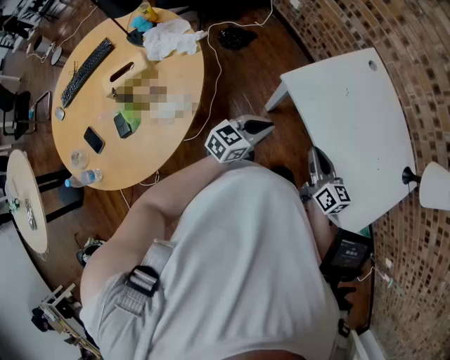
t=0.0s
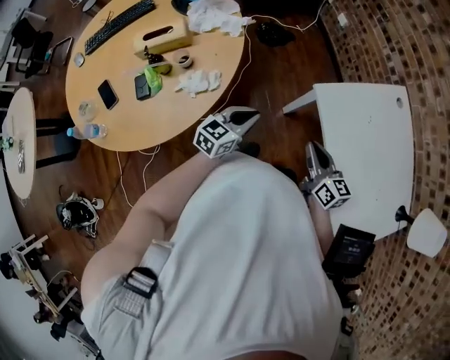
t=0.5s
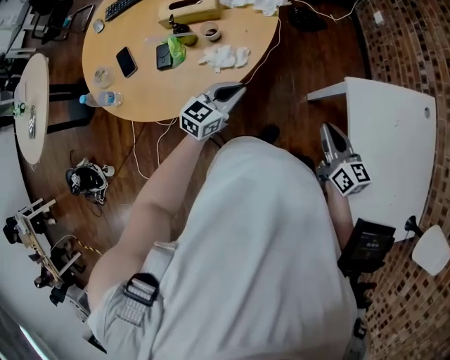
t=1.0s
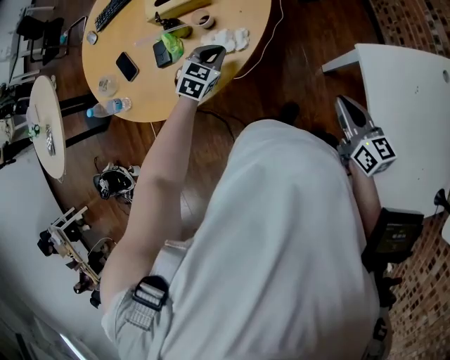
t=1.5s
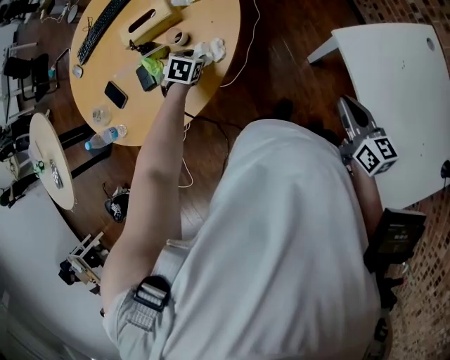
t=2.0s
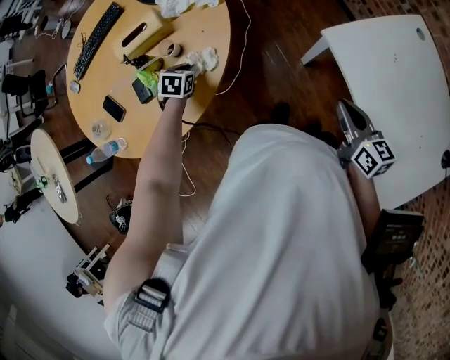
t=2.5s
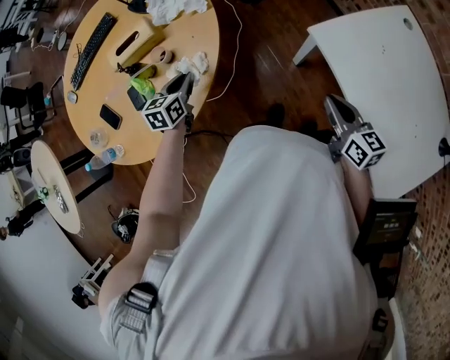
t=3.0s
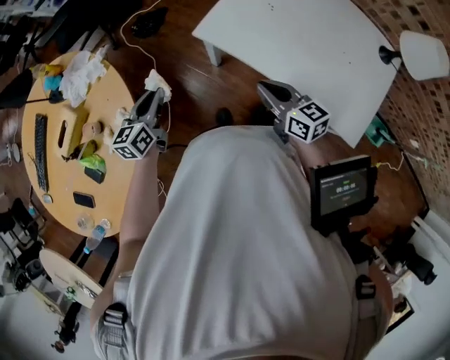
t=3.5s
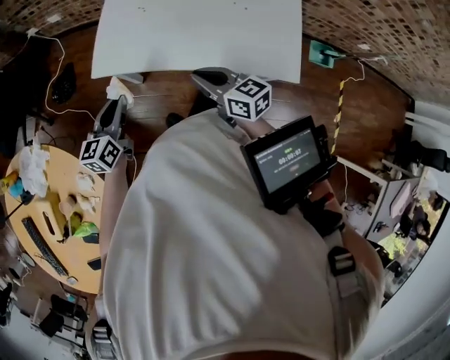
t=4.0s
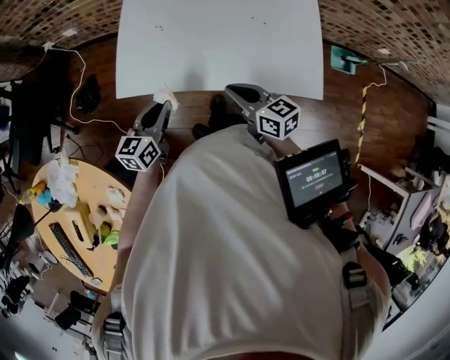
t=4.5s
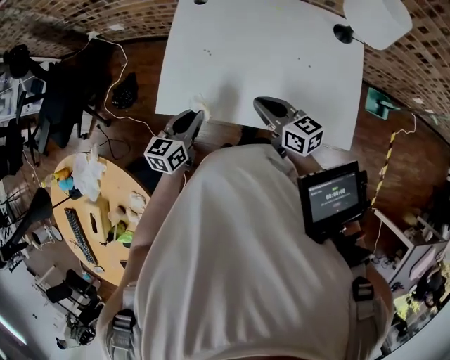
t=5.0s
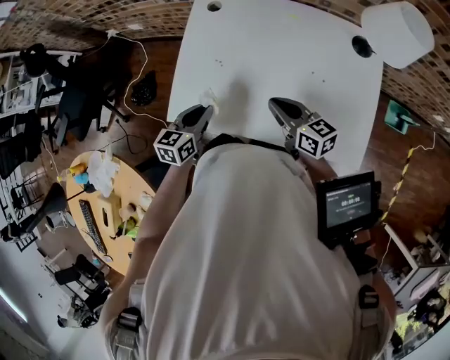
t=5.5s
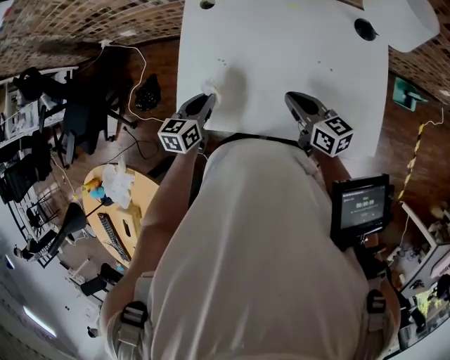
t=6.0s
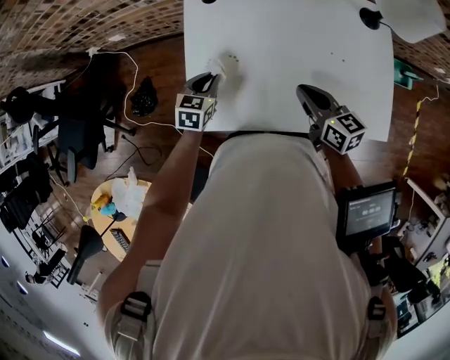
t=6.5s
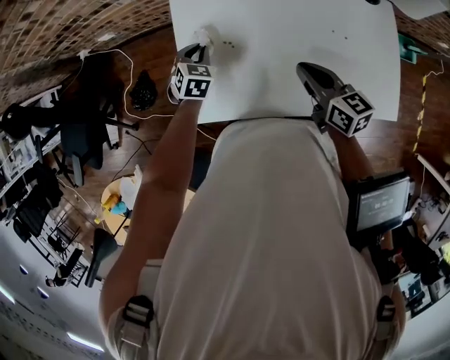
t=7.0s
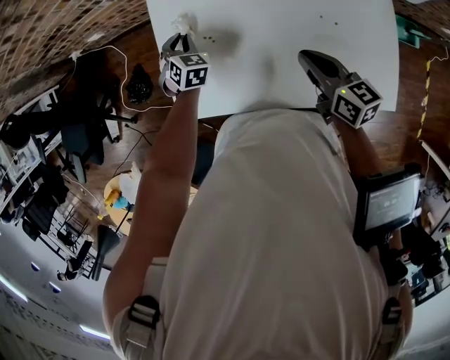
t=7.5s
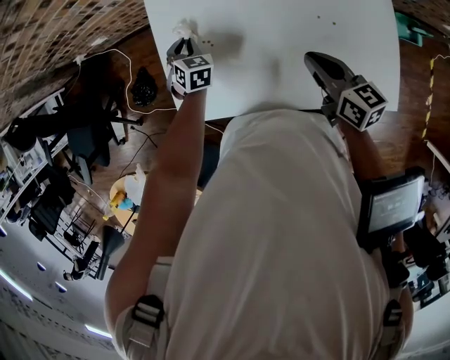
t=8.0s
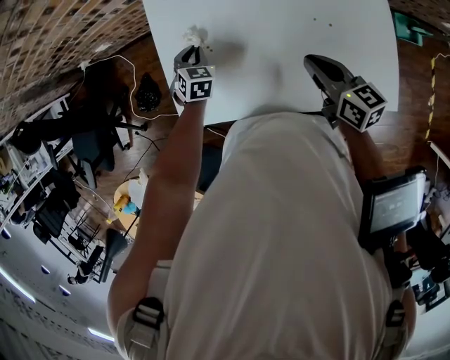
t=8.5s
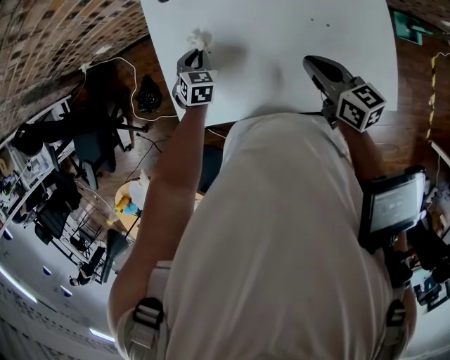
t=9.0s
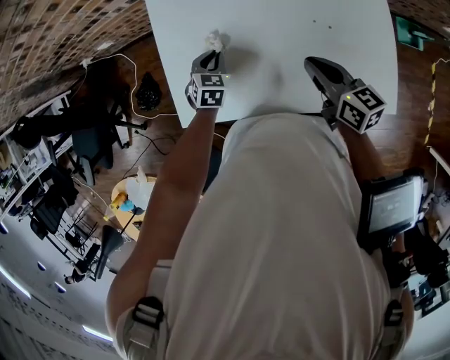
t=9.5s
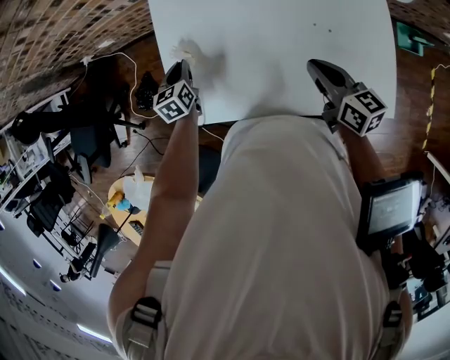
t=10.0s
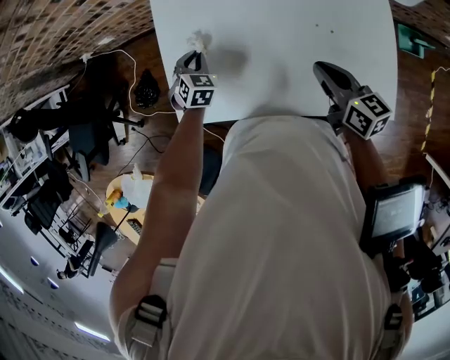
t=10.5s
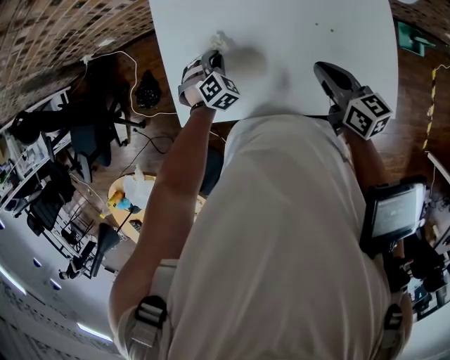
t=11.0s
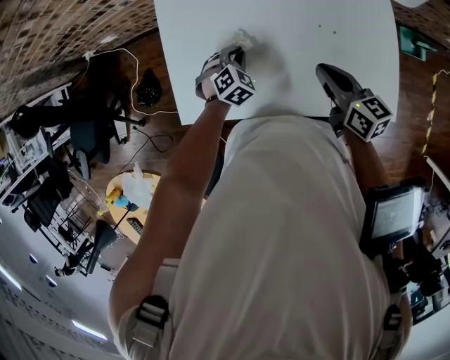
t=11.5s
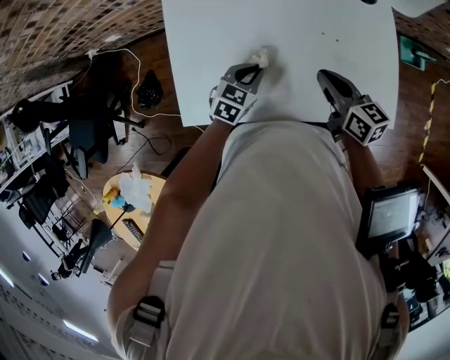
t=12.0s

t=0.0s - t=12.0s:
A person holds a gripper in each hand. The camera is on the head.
t=0.0s - t=2.0s: The left gripper ends up roughly 40 cm from where it was, tips its fingers downward by some 50 degrees, and opens up.
t=2.0s - t=4.0s: The right gripper changes place by approximately 20 cm, and changes its angle by roughly 40 degrees. The left gripper ends up some 40 cm from where it was, tilts its fingers about 50 degrees upward, and closes its fingers.
t=4.0s - t=6.0s: The right gripper travels forward and to the right by about 20 cm; the left gripper shifts roughly 20 cm forward.
t=6.0s - t=8.0s: The right gripper shifts by some 5 cm. Meanwhile the left gripper shifts some 20 cm forward and downward, and turns by about 50 degrees.
t=8.0s - t=10.0s: The left gripper travels to the left by approximately 5 cm, and rotates about 40 degrees.
t=10.0s - t=12.0s: The left gripper ends up about 20 cm from where it was, and rotates about 40 degrees.

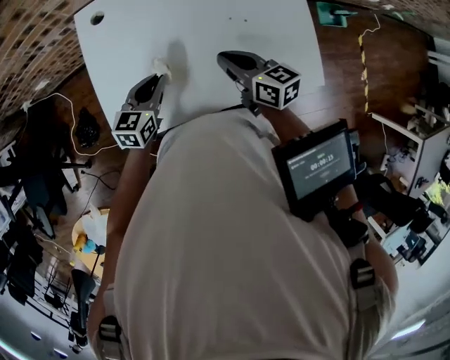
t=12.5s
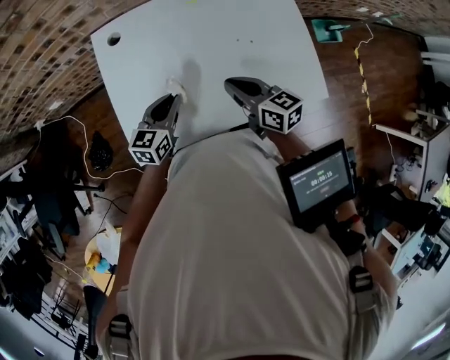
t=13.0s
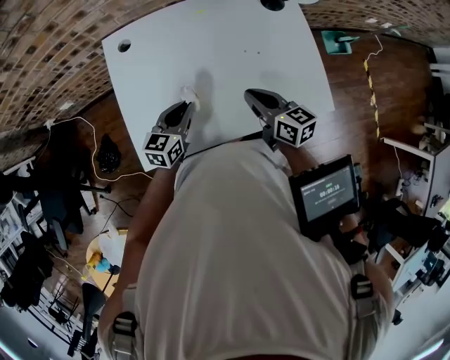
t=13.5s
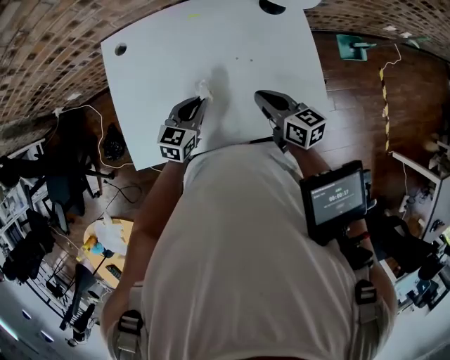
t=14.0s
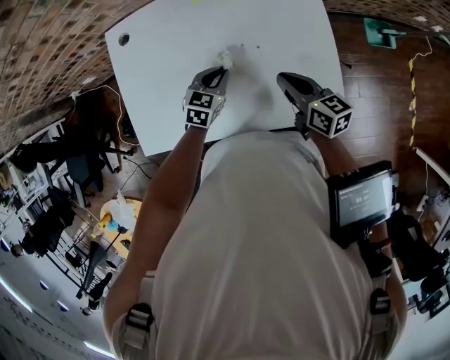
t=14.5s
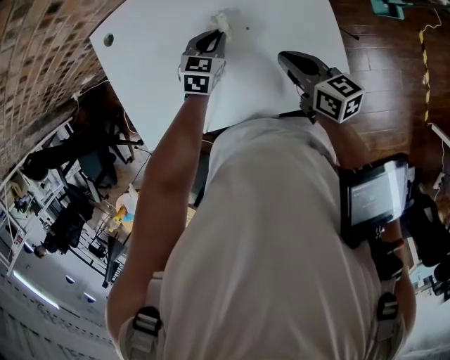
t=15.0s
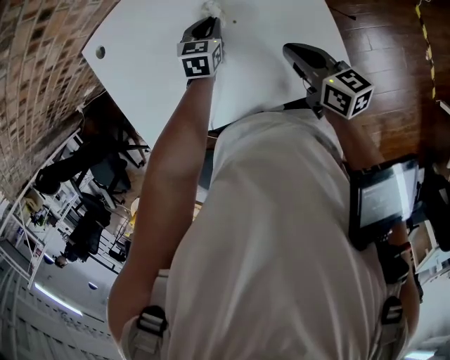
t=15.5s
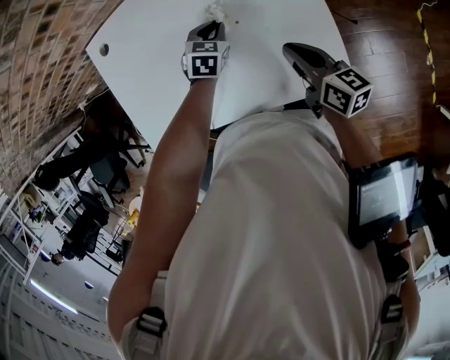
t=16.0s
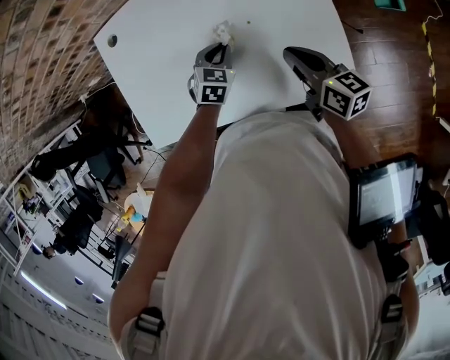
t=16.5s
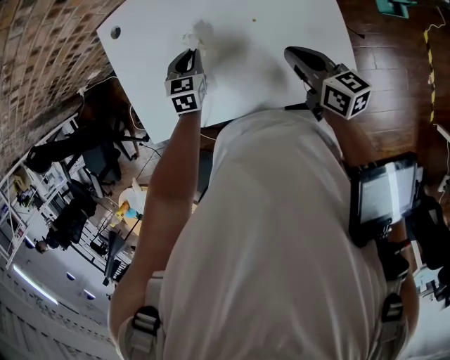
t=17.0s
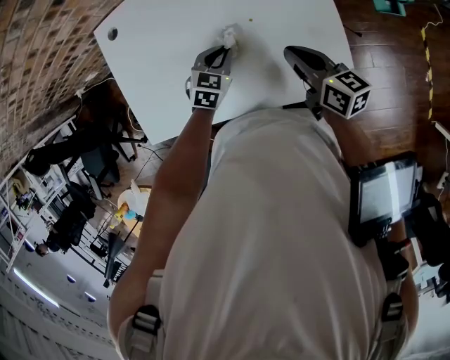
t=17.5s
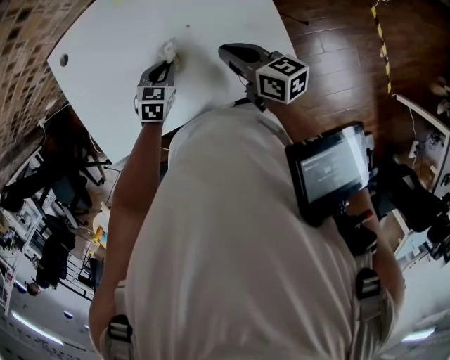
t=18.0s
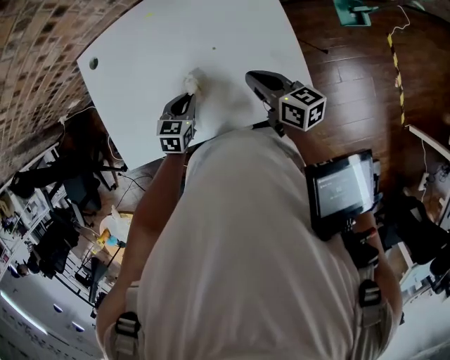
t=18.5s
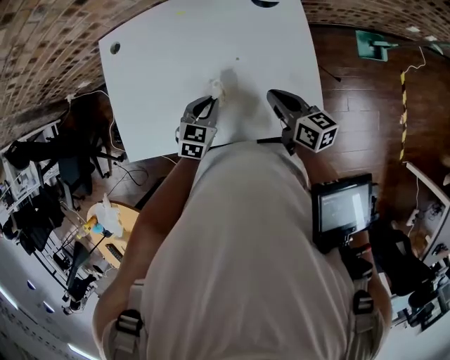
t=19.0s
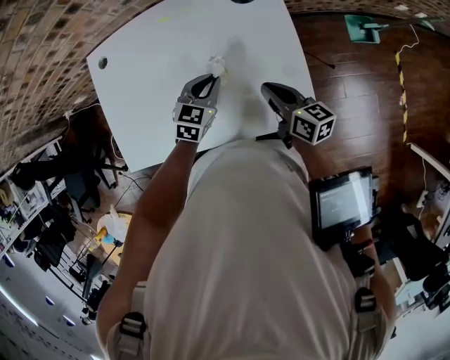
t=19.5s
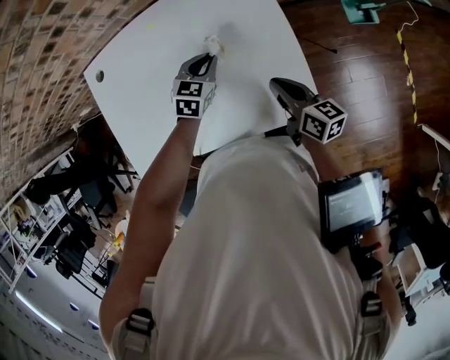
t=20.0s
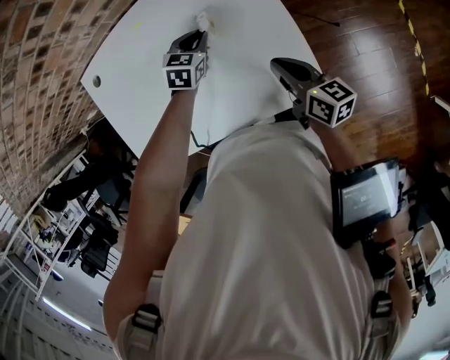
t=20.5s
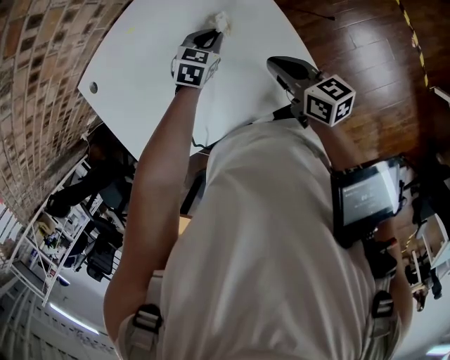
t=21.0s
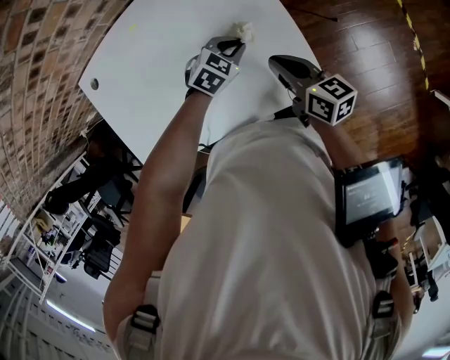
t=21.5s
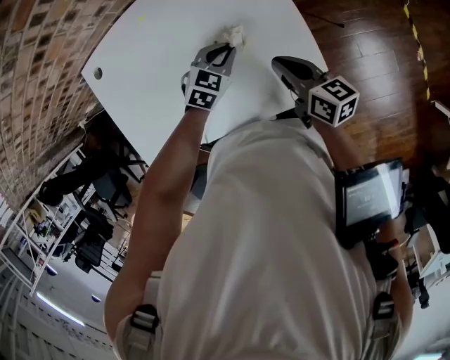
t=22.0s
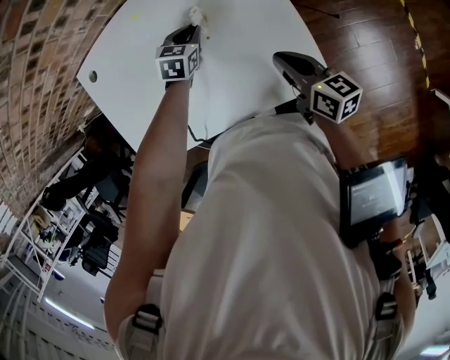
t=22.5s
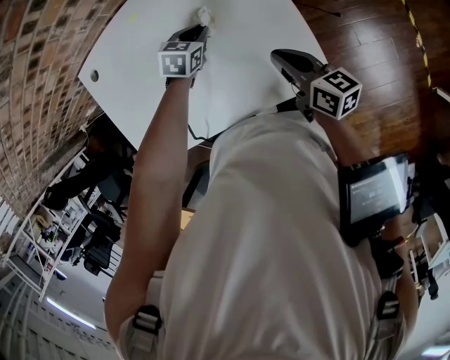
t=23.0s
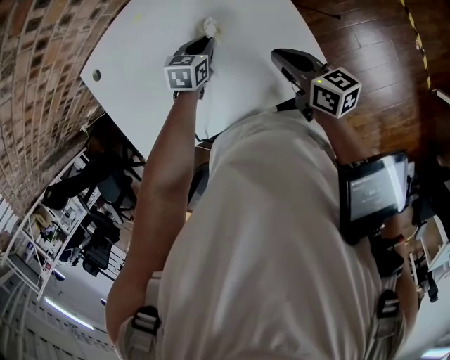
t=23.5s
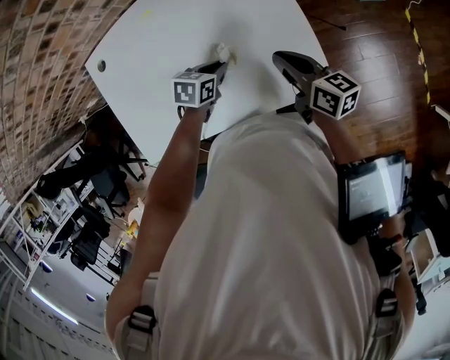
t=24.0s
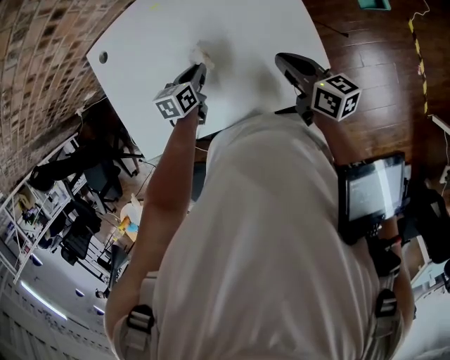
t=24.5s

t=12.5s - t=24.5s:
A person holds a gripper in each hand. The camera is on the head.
t=12.5s - t=14.5s: Both grippers travel together to the right, about 20 cm.
t=14.5s - t=16.5s: The left gripper reaches about 10 cm forward, then returns.
t=16.5s - t=18.5s: The left gripper heads backward, covering roughly 5 cm.
t=18.5s - t=20.5s: The left gripper moves forward and to the right, some 20 cm; the right gripper travels to the right by some 5 cm.
t=20.5s - t=22.5s: The left gripper goes to the right and returns, about 10 cm each way.
t=22.5s - t=24.5s: The left gripper moves backward and to the left, about 15 cm, and turns by roughly 30 degrees.

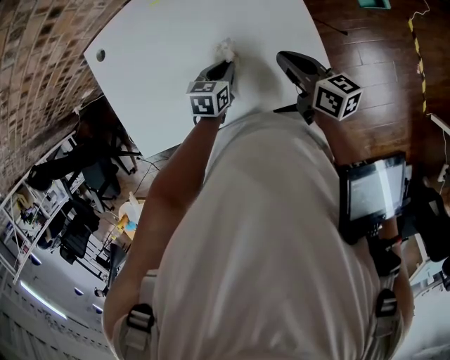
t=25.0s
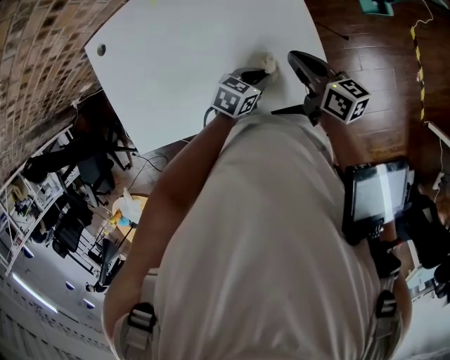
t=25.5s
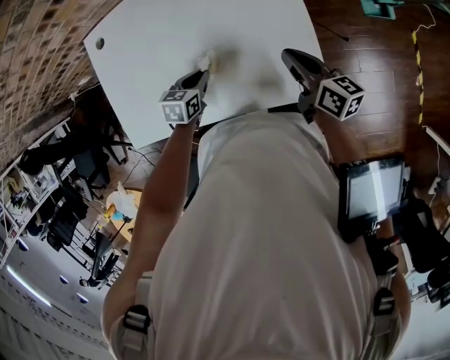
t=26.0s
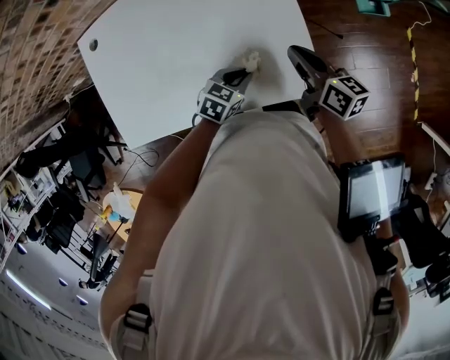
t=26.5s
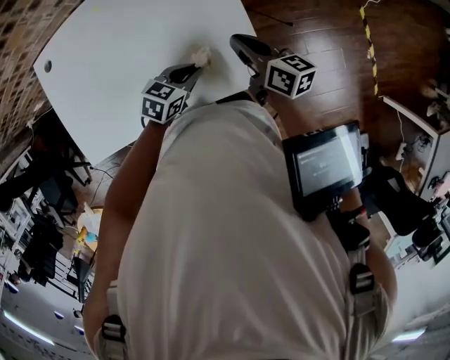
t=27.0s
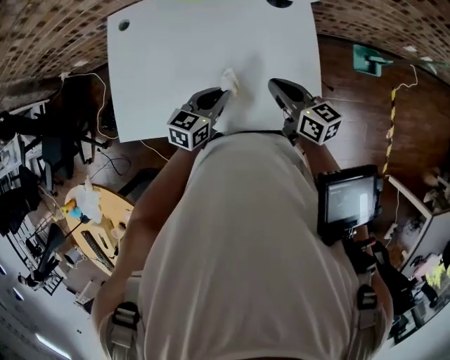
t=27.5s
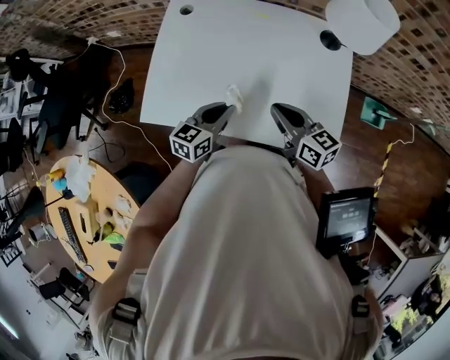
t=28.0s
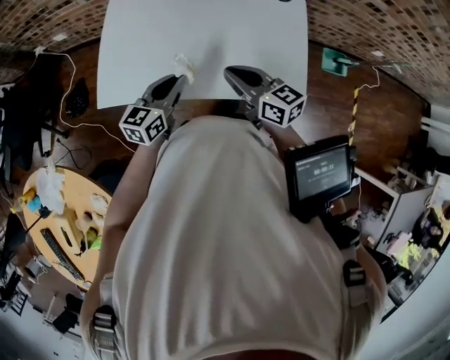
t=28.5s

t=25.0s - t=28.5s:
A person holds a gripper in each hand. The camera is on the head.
t=25.0s - t=27.0s: The right gripper moves to the right, roughly 5 cm; the left gripper goes left and right, some 20 cm each way, reversing 2 times, and turns by about 20 degrees.
t=27.0s - t=28.5s: The left gripper moves about 30 cm, and swivels some 50 degrees; the right gripper shifts by roughly 30 cm, and turns by about 40 degrees.
